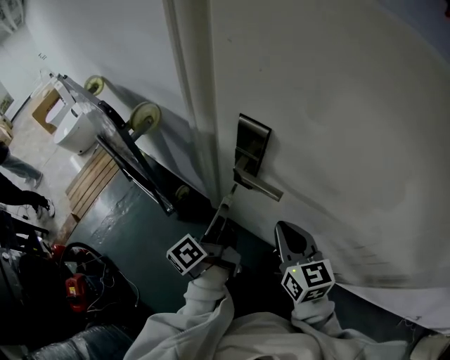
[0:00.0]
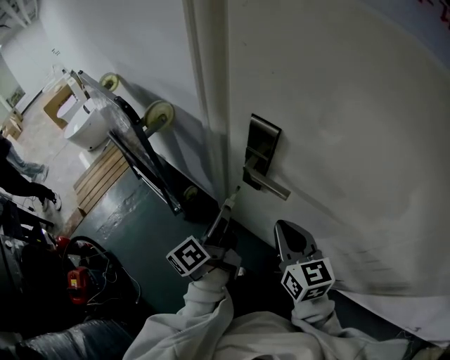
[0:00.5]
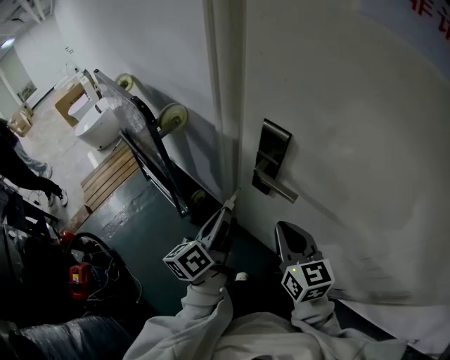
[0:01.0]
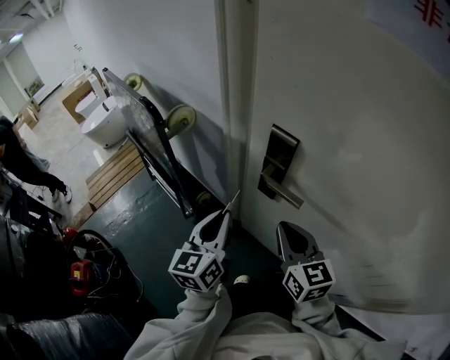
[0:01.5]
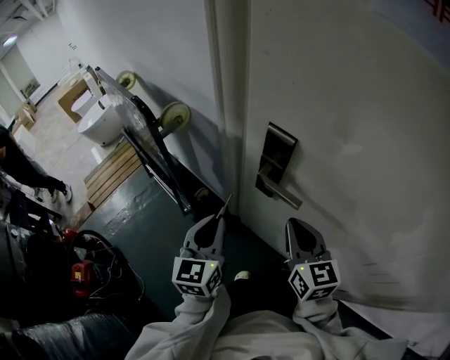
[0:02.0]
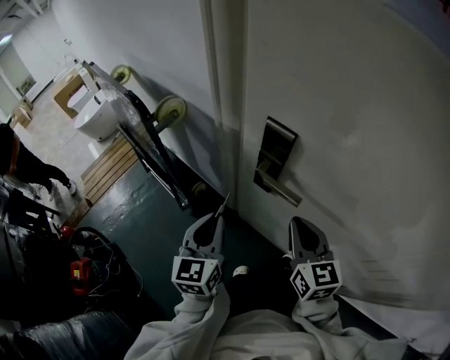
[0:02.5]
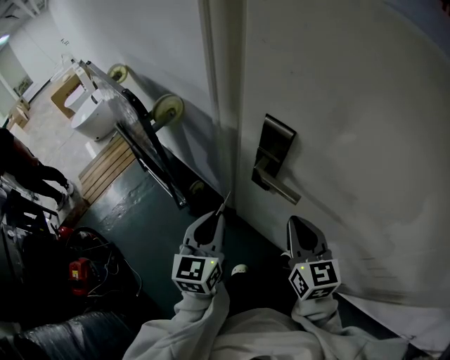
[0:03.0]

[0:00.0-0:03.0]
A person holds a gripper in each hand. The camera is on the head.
0:00.0 to 0:01.5: The left gripper moves upward and to the left, approximately 10 cm, and rotates around the line of its fingers by some 60 degrees, clockwise from behind; the right gripper moves about 5 cm.
0:01.5 to 0:03.0: The grippers stay close to where they were, moving slightly.

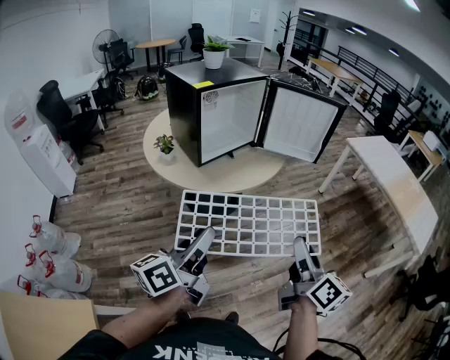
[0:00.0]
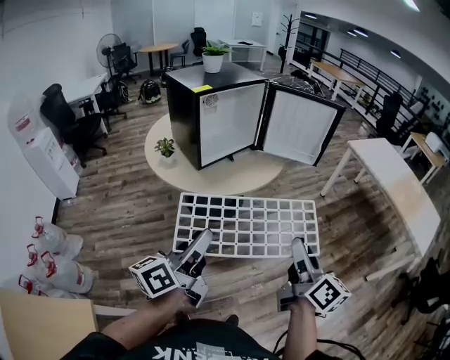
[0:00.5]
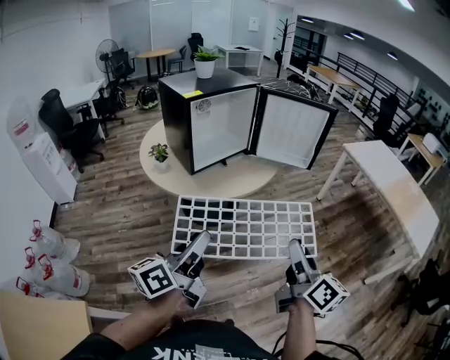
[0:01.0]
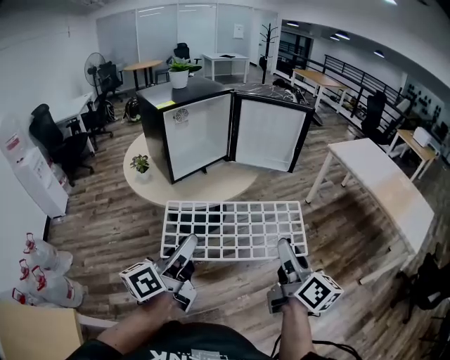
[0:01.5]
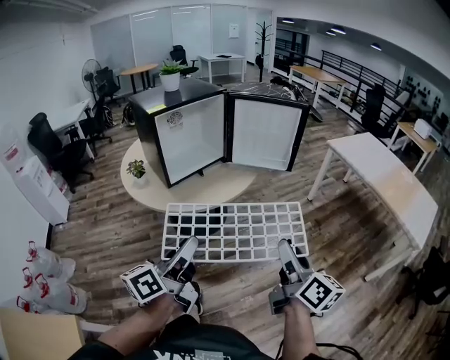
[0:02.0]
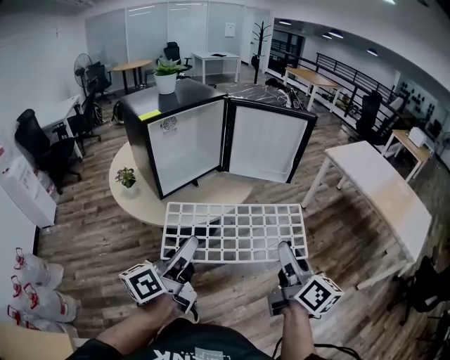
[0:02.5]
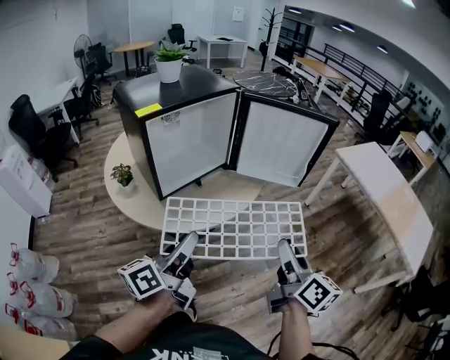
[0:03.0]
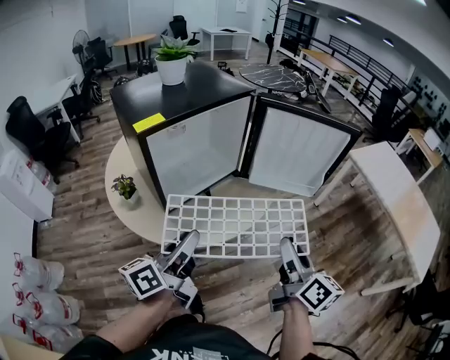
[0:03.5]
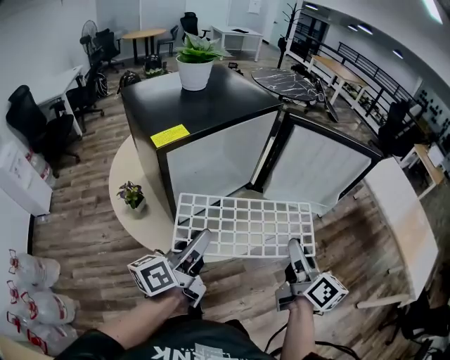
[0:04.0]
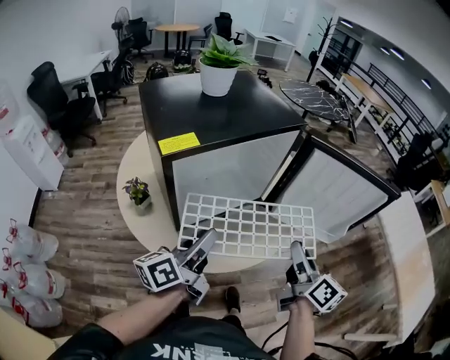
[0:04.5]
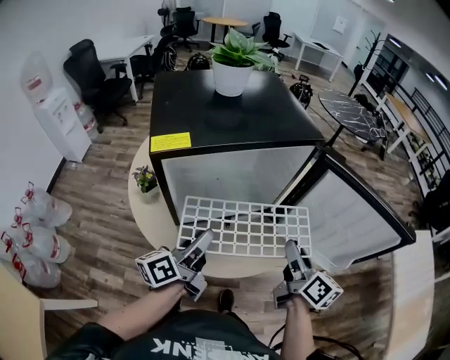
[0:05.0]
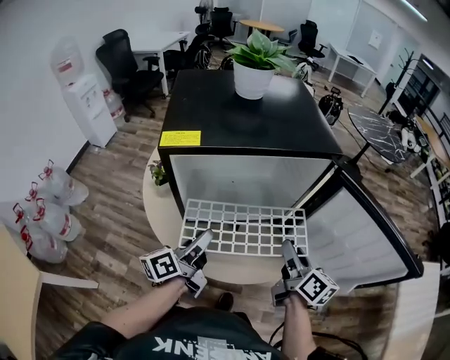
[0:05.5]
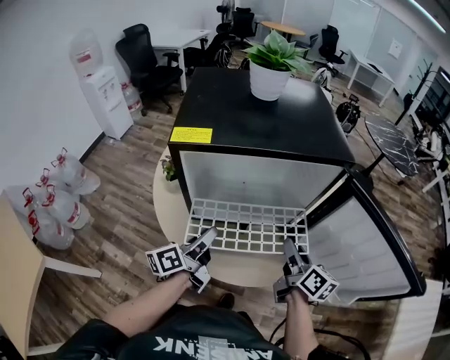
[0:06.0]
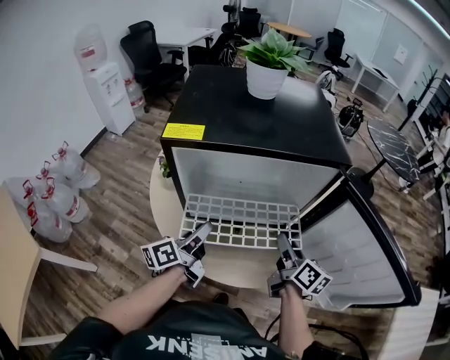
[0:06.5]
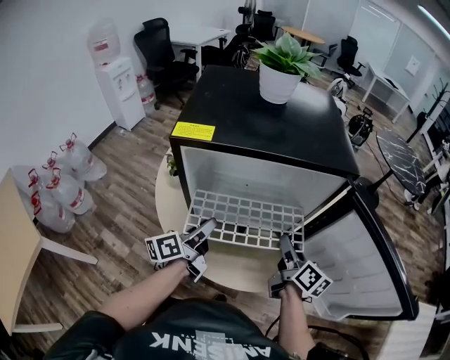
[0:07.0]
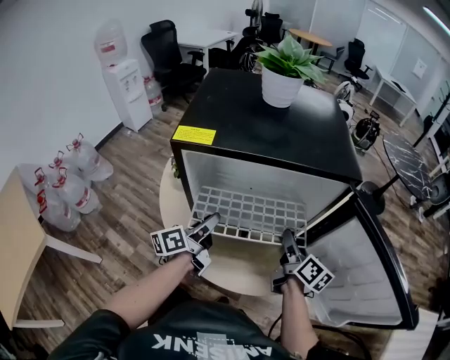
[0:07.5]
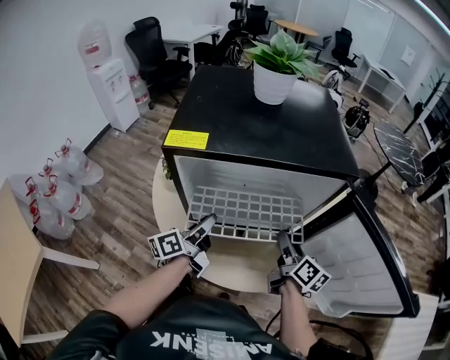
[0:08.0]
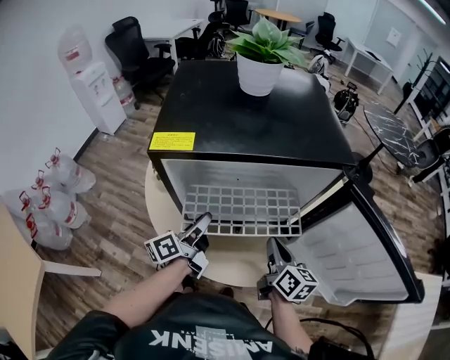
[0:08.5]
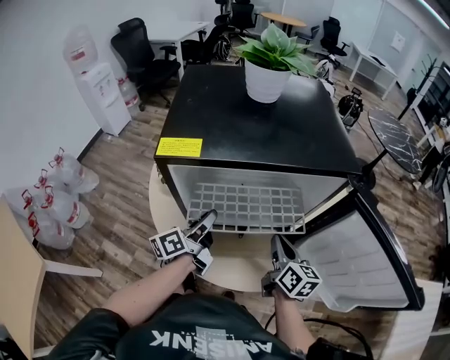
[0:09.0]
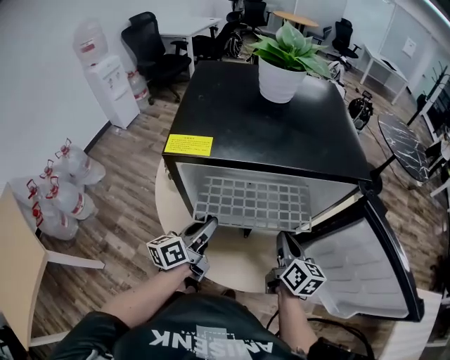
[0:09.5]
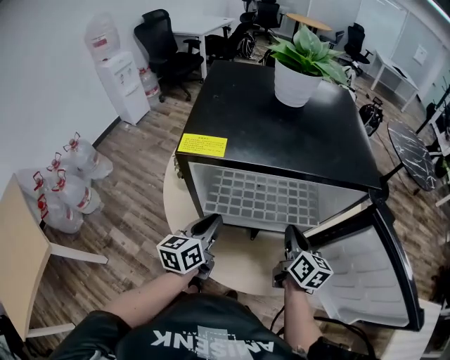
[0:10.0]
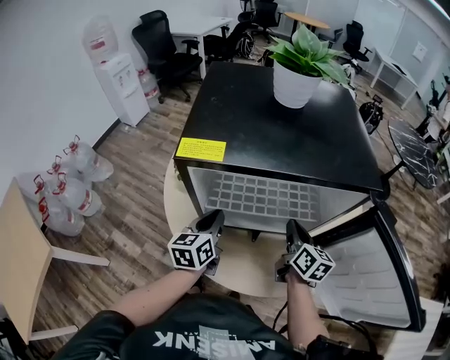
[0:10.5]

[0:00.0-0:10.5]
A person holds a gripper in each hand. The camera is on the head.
0:00.0 to 0:02.0: The left gripper shifts approximately 10 cm to the right, while the right gripper is displaced to the right and forward by approximately 10 cm.
0:02.0 to 0:04.0: The grippers both shift forward and to the left by about 40 cm.
0:04.0 to 0:06.5: The right gripper moves about 25 cm, and rotates some 40 degrees. The left gripper is displaced downward by about 10 cm, and swivels some 40 degrees.
0:06.5 to 0:08.5: The left gripper moves forward, some 5 cm. Meanwhile the right gripper closes up.
0:08.5 to 0:10.5: The right gripper heads forward, covering roughly 10 cm; the left gripper swivels roughly 40 degrees.

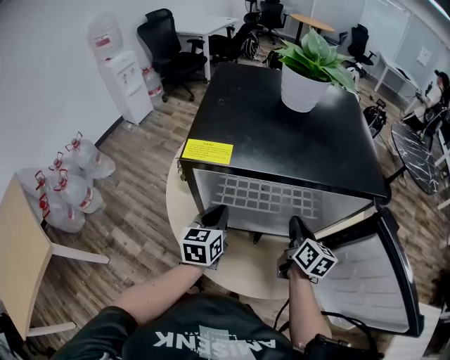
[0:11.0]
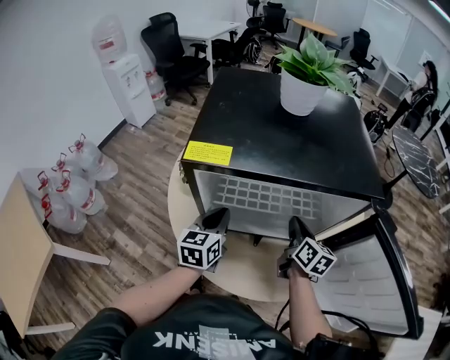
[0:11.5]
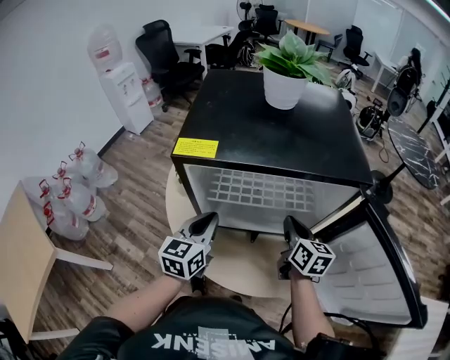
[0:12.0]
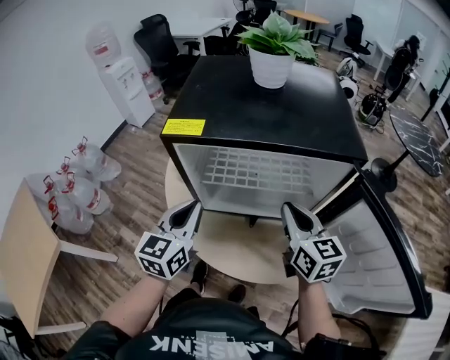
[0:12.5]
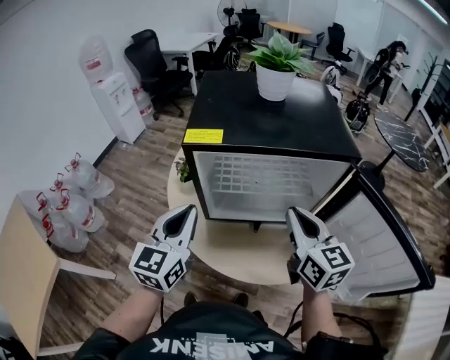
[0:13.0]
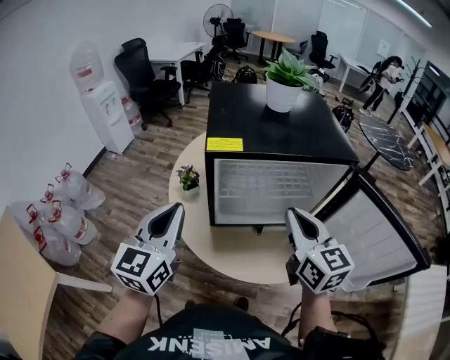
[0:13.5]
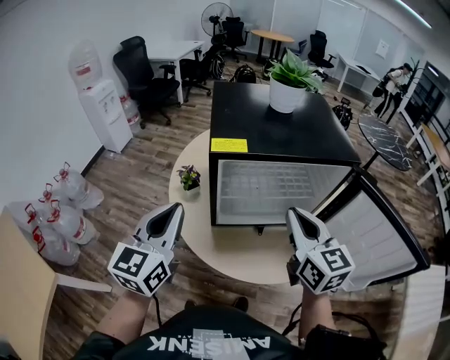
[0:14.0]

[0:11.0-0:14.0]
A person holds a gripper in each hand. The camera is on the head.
0:11.0 to 0:12.5: Both grippers move upward and backward, about 15 cm. The right gripper changes its angle by approximately 30 degrees.
0:12.5 to 0:14.0: The right gripper goes about 15 cm upward, to the left and backward, while the left gripper travels to the left and upward by approximately 15 cm.

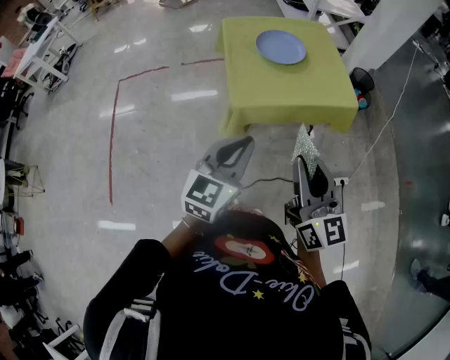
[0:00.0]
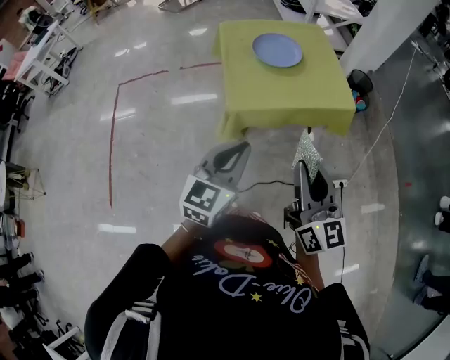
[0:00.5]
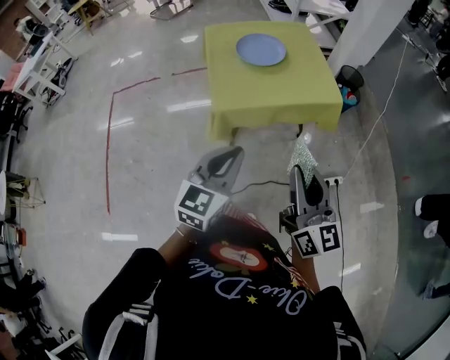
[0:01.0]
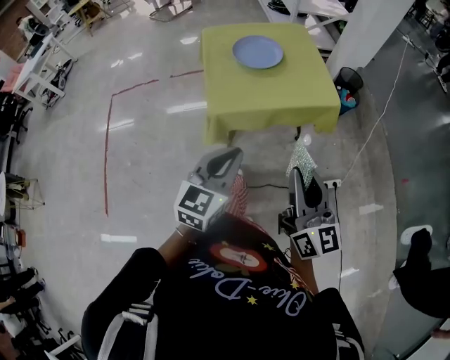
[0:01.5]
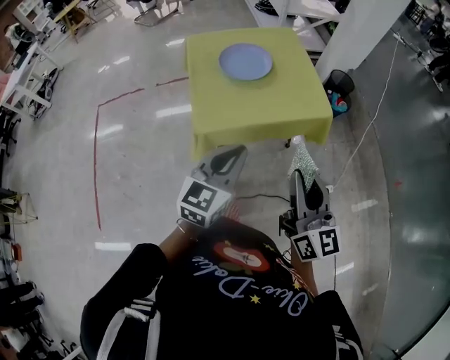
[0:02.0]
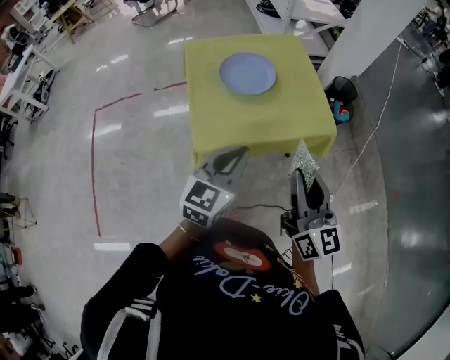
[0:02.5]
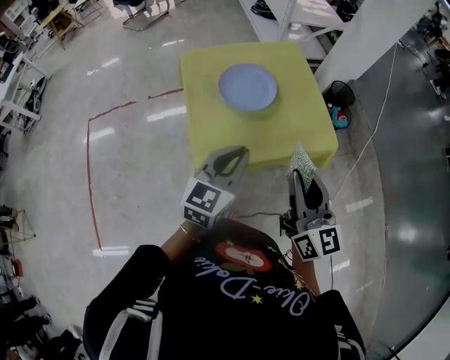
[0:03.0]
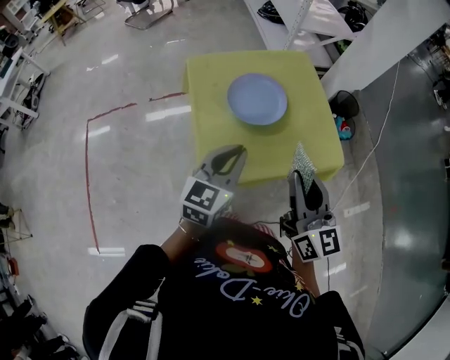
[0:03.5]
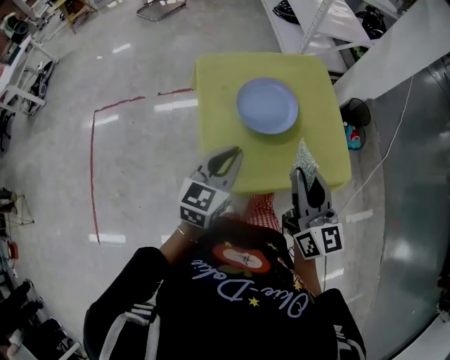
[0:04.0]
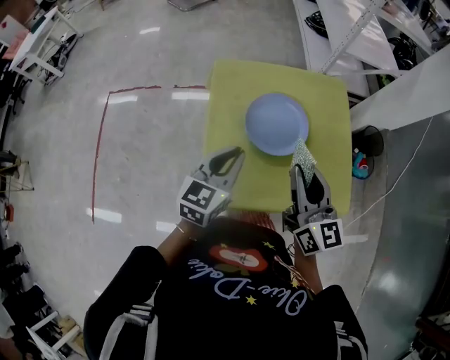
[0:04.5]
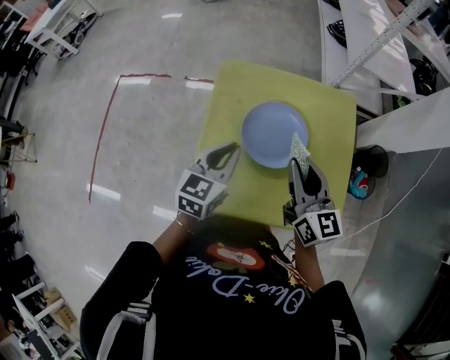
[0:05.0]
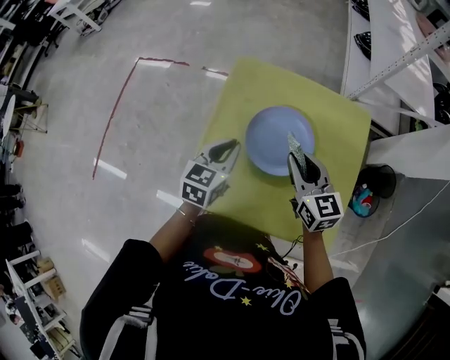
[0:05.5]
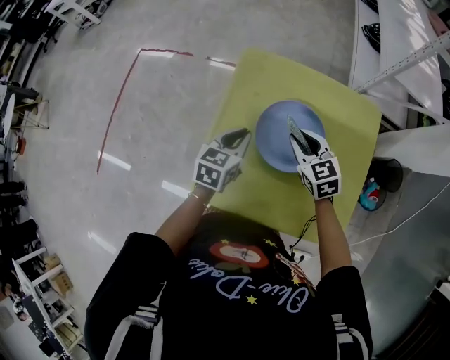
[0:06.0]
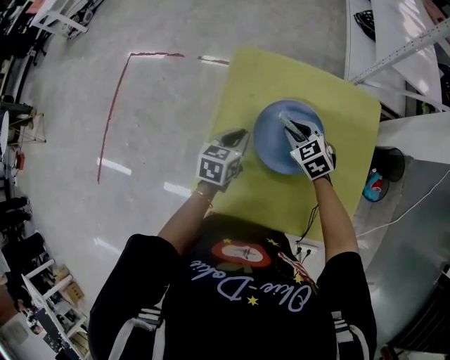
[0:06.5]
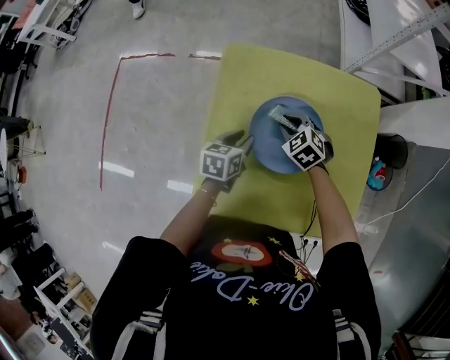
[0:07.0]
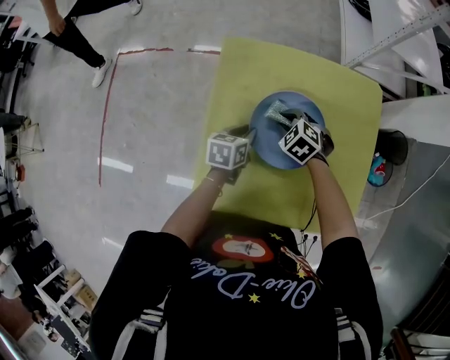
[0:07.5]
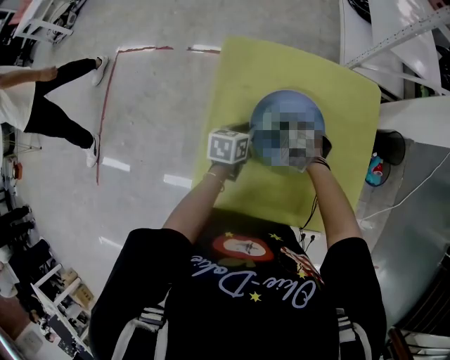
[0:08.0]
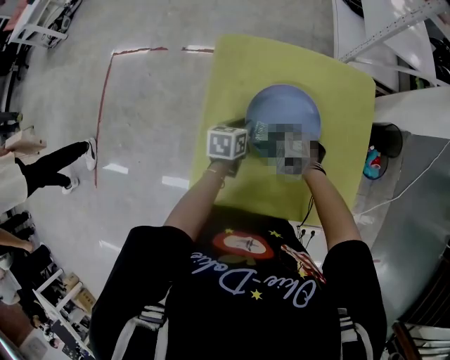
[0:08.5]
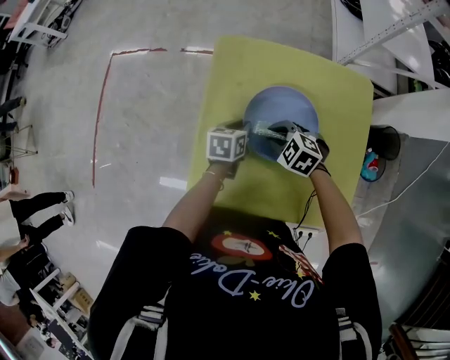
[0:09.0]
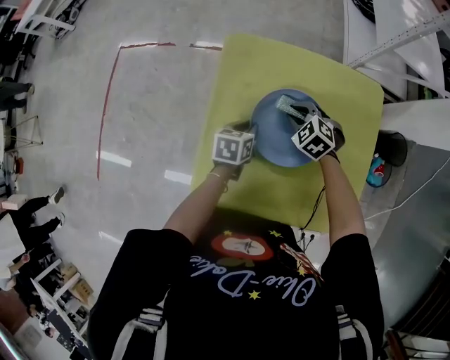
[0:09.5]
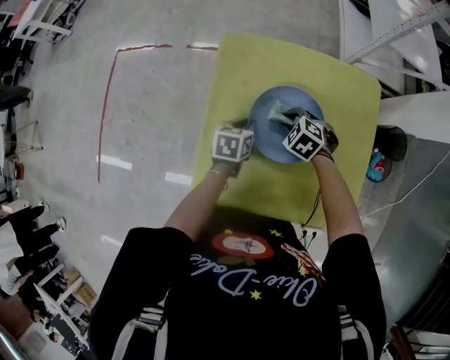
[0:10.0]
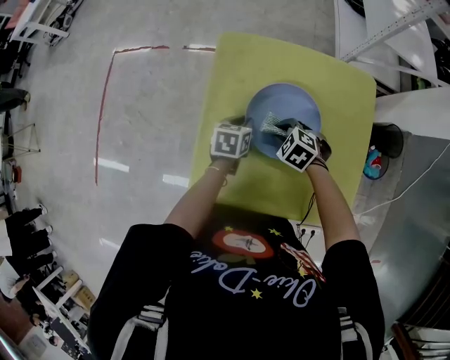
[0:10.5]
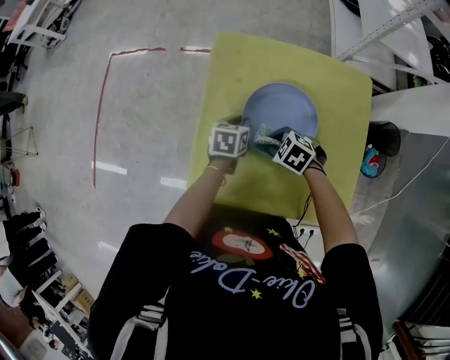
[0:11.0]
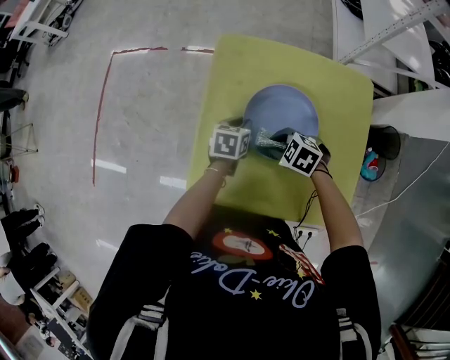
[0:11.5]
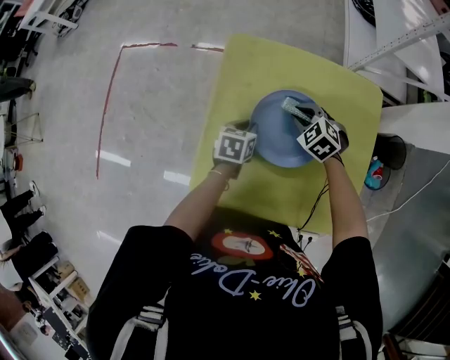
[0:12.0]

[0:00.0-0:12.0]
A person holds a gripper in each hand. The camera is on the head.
0:00.0 to 0:02.0: The left gripper travels forward and to the right by some 15 cm; the right gripper is displaced to the right and forward by about 10 cm.
0:02.0 to 0:04.0: The left gripper travels forward and to the left by approximately 30 cm. The right gripper is displaced forward by approximately 30 cm.
0:04.0 to 0:06.0: The left gripper shifts by some 20 cm, and rotates approximately 30 degrees, while the right gripper ends up about 35 cm from where it was, and angles its fingers downward, by roughly 40 degrees.
0:06.0 to 0:08.0: Both grippers travel together downward, about 15 cm. The right gripper angles its fingers downward, by about 30 degrees; the left gripper changes its angle by approximately 20 degrees.
0:08.0 to 0:10.0: The right gripper swings forward and backward, approximately 10 cm each way, with 2 reversals.
0:10.0 to 0:12.0: The right gripper goes backward and returns, roughly 10 cm each way.
